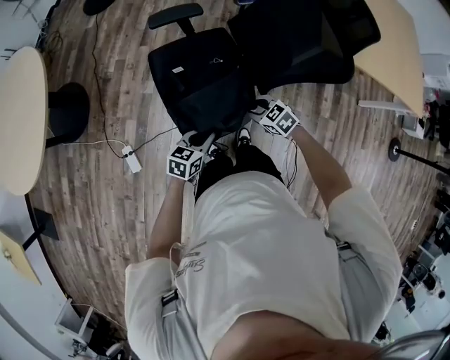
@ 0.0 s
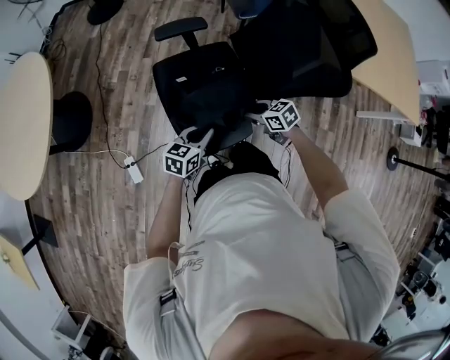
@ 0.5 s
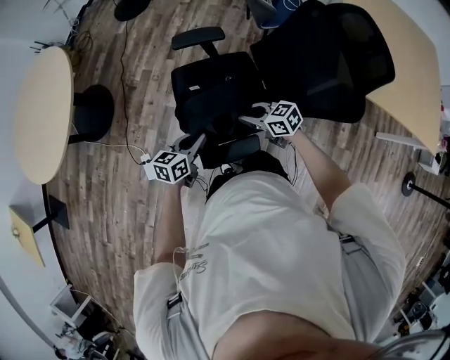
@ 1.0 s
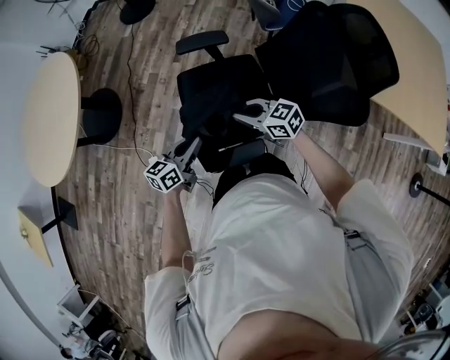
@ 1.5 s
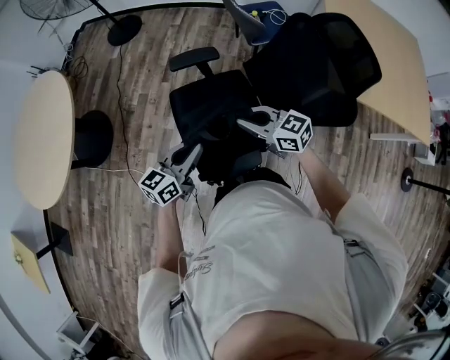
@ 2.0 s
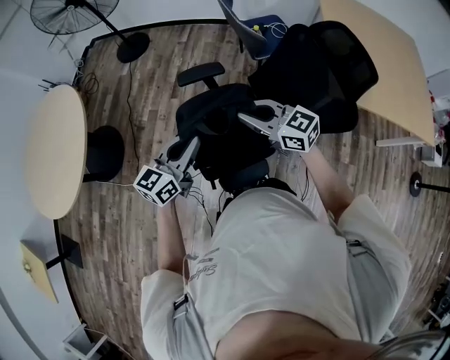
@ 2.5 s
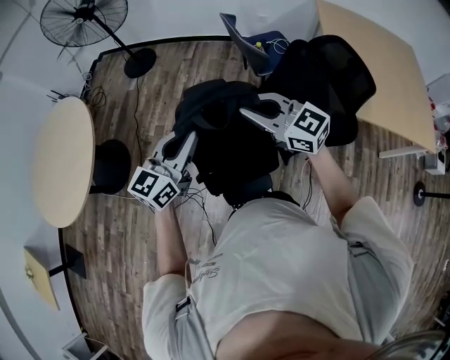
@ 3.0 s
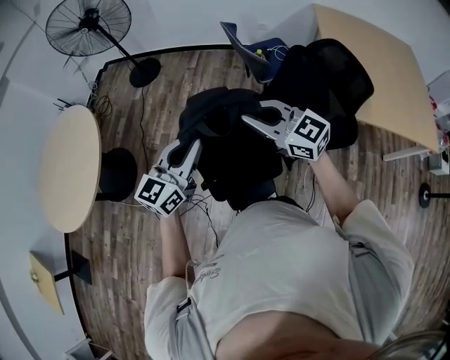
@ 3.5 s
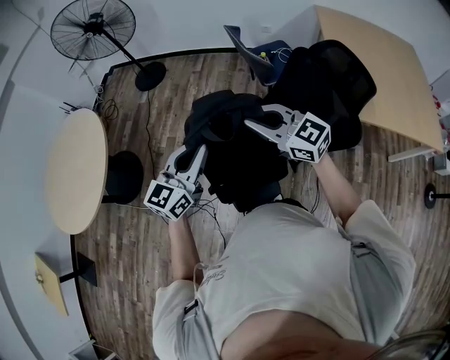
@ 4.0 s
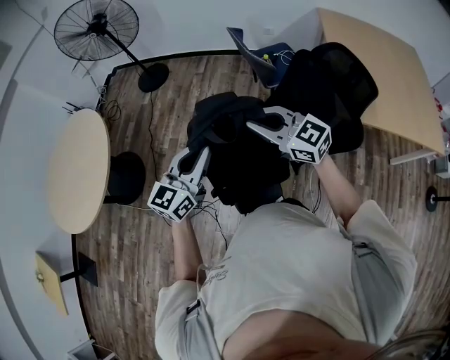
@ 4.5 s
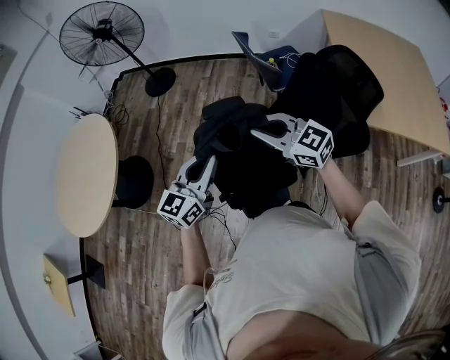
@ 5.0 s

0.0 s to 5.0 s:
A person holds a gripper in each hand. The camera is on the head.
0.0 to 2.5 s: The two grippers go roughly 30 cm upward and forward. The left gripper turns by about 30 degrees. Meanwhile the right gripper points its fingers roughly 40 degrees further upward, and closes.
2.5 to 5.0 s: Both grippers move upward, approximately 5 cm.

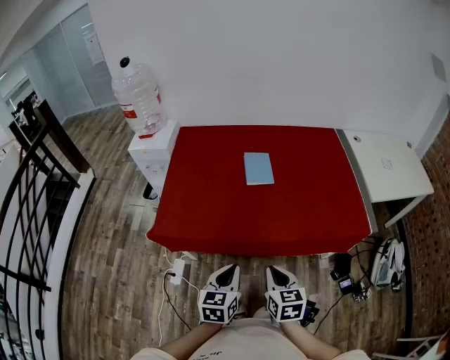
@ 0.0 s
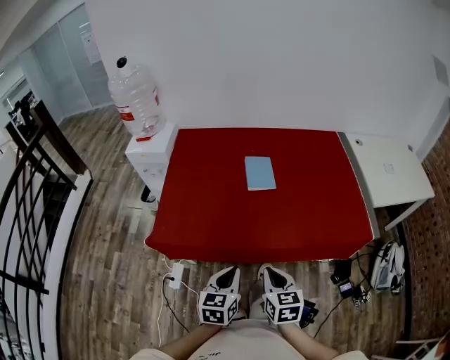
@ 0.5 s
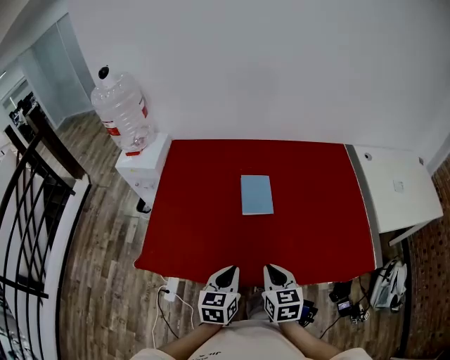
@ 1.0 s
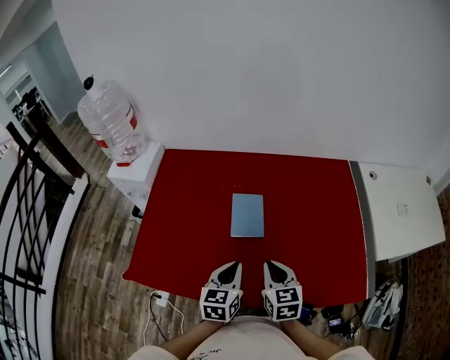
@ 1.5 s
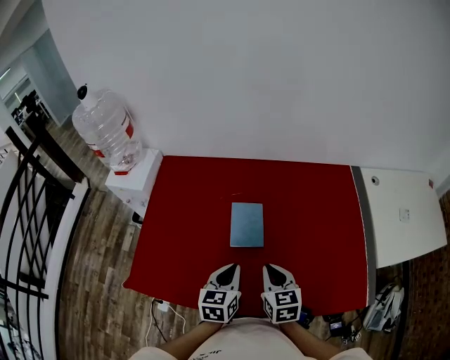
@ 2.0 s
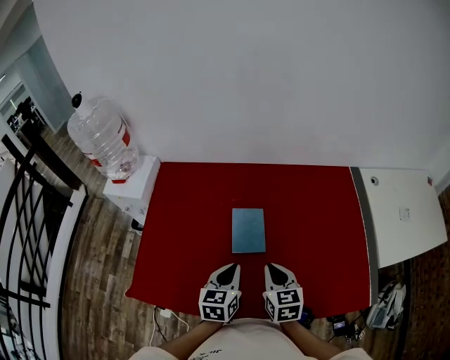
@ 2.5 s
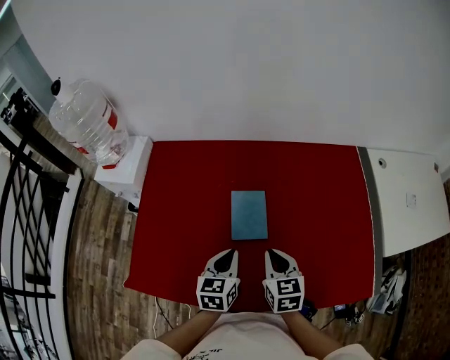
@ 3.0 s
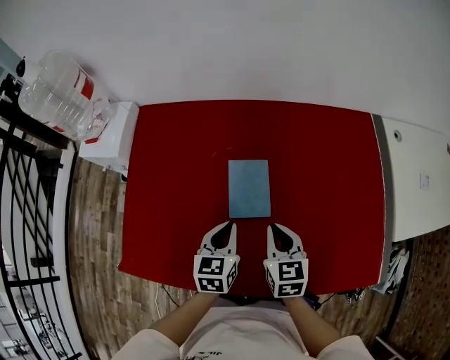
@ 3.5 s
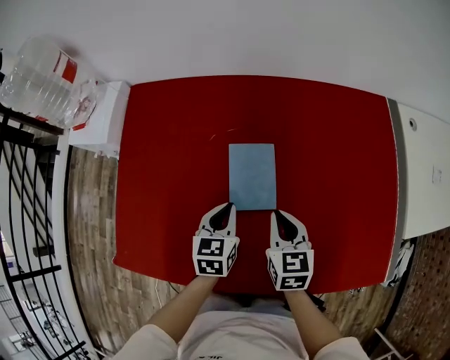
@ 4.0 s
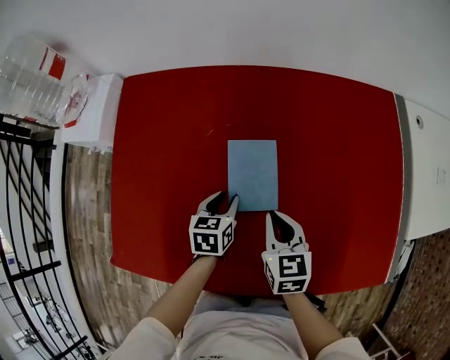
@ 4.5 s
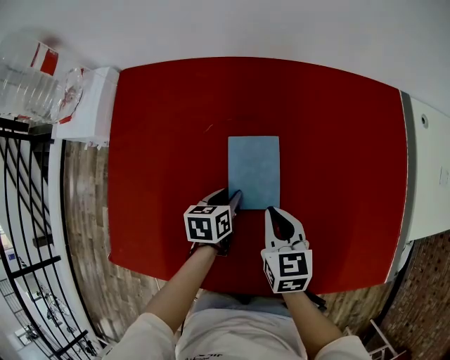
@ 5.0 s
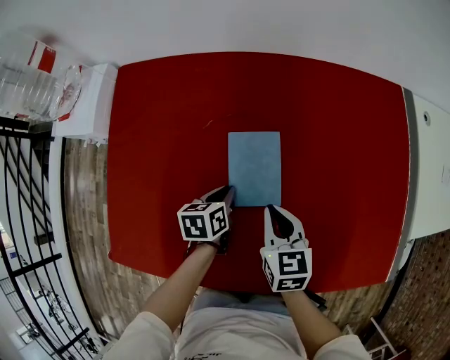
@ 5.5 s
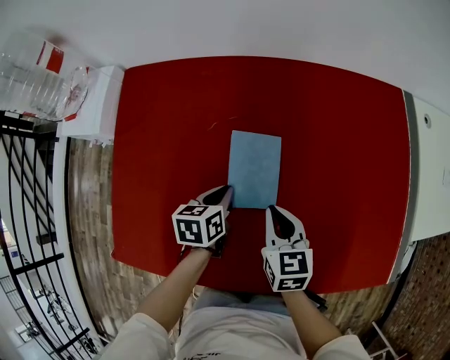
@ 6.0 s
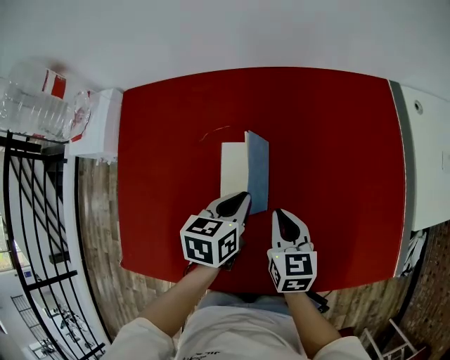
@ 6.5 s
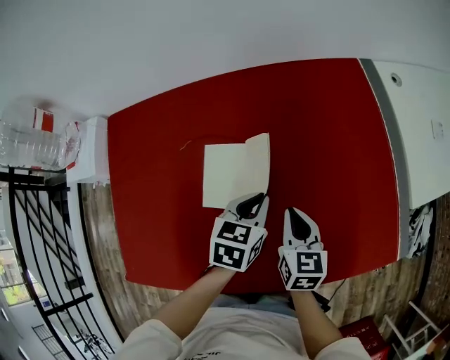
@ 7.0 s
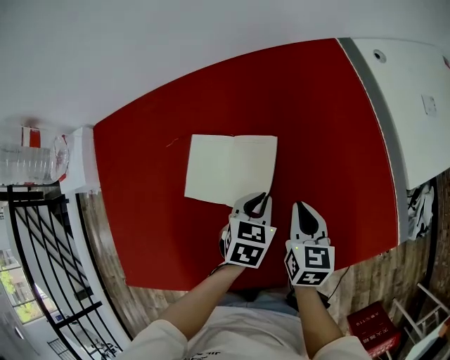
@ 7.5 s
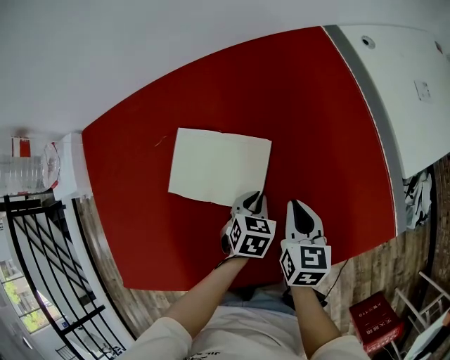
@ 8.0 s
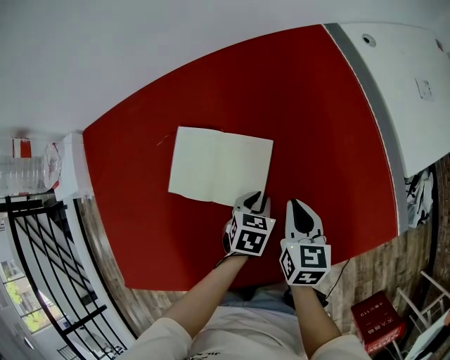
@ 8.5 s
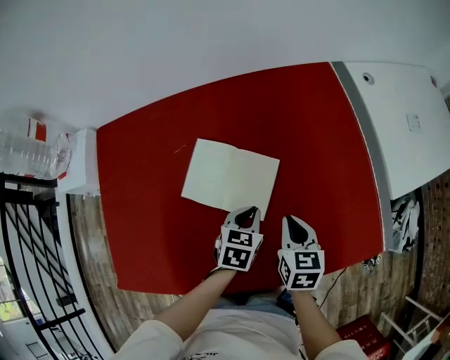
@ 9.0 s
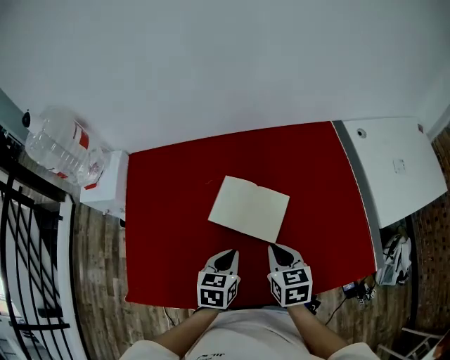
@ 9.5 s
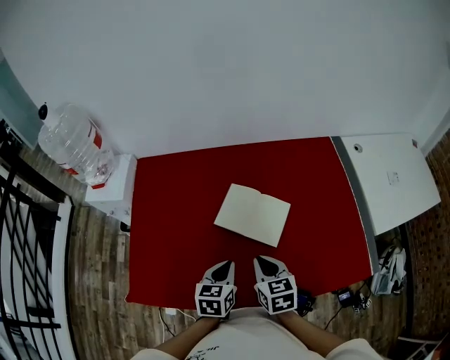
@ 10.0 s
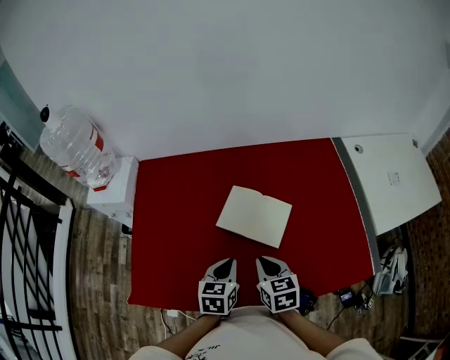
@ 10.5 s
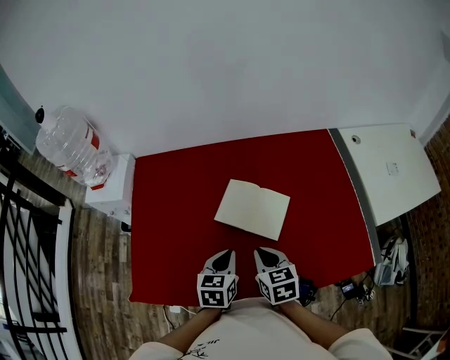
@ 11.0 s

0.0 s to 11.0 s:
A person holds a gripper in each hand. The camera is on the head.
0.0 to 2.0 s: Both grippers travel together forward, approximately 35 cm.
2.0 to 3.5 s: Both grippers move forward and downward, some 10 cm.
3.5 to 5.5 s: The right gripper is displaced downward by roughly 10 cm. Meanwhile the left gripper heads downward and forward, covering roughly 15 cm, rotates approximately 30 degrees, and opens and closes again.
5.5 to 7.5 s: Both grippers move to the right, roughly 25 cm. The right gripper rotates about 30 degrees. Meanwhile the left gripper rotates around the line of its fingers by about 40 degrees, clockwise from behind.
7.5 to 9.0 s: The left gripper moves roughly 10 cm downward and comes back.
9.0 to 11.0 s: The right gripper travels to the left and upward by some 20 cm, and turns by approximately 20 degrees. The left gripper travels to the left, upward and backward by some 25 cm, and swivels approximately 20 degrees.

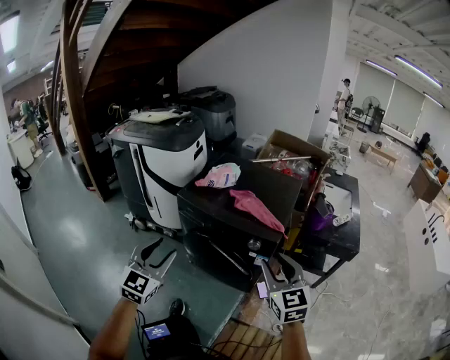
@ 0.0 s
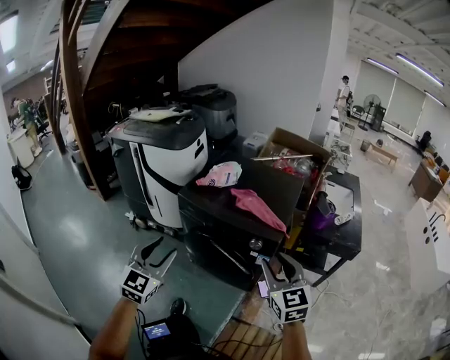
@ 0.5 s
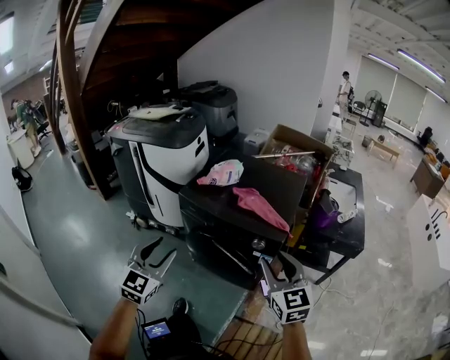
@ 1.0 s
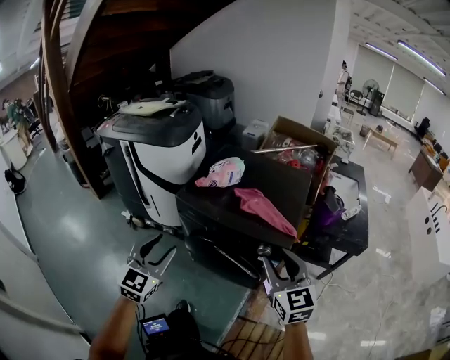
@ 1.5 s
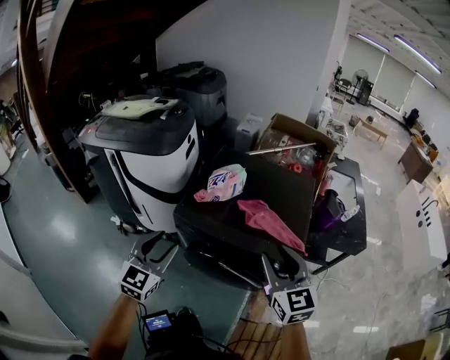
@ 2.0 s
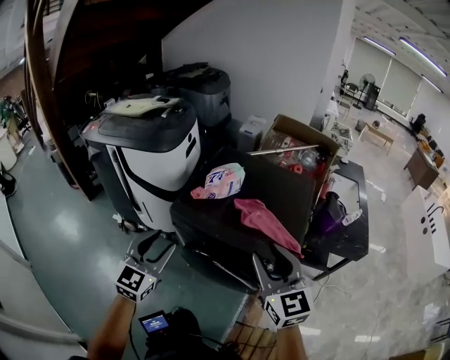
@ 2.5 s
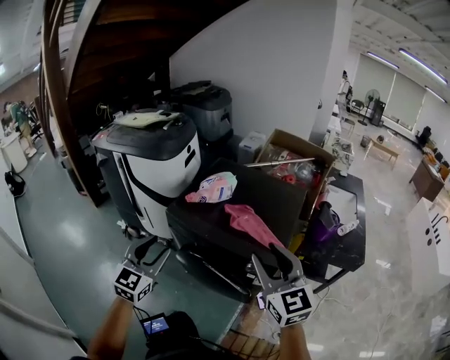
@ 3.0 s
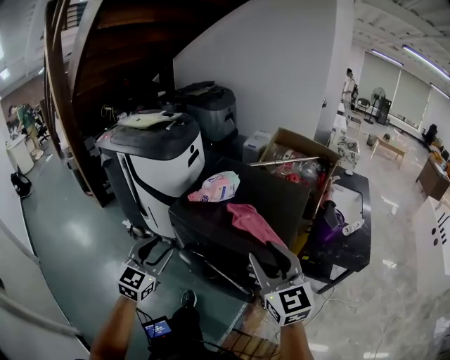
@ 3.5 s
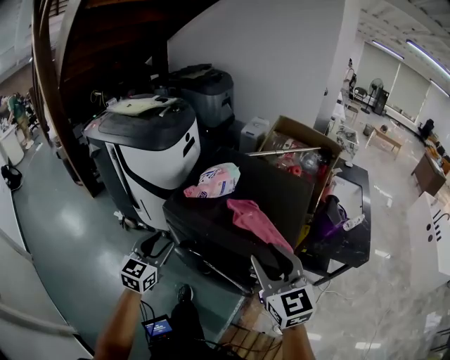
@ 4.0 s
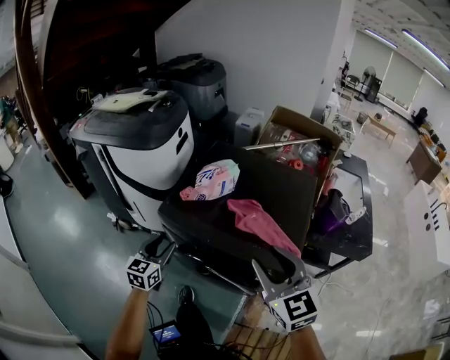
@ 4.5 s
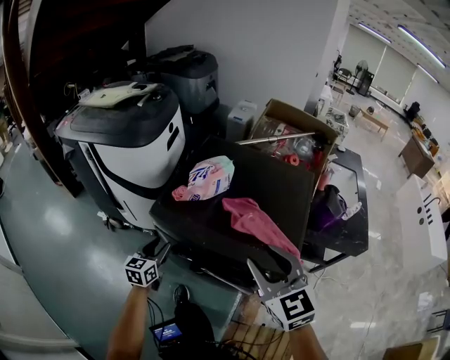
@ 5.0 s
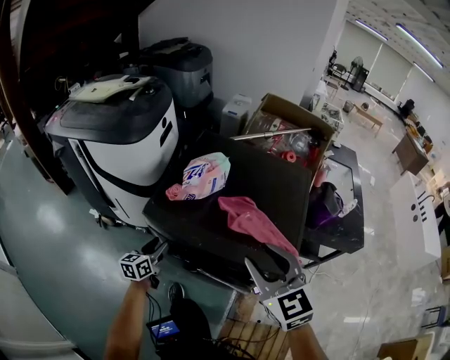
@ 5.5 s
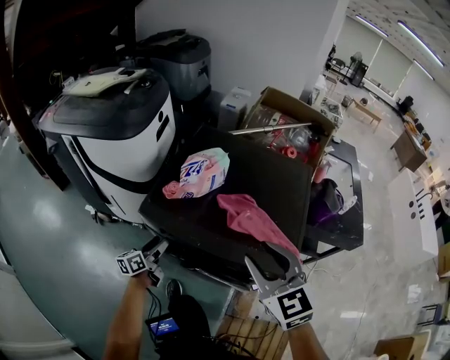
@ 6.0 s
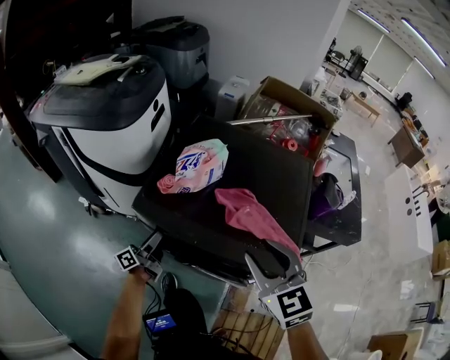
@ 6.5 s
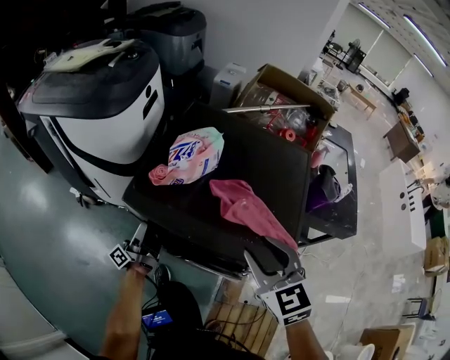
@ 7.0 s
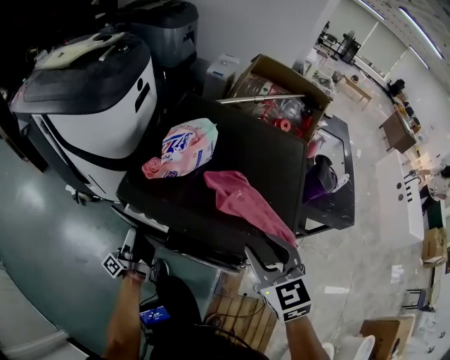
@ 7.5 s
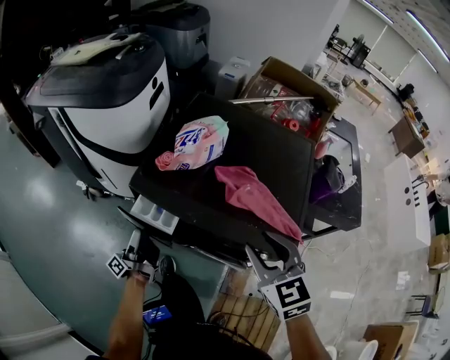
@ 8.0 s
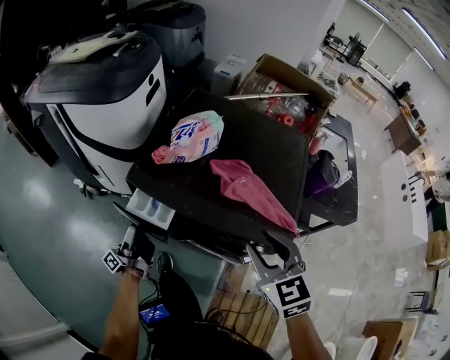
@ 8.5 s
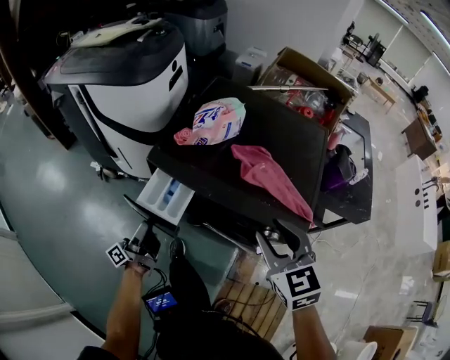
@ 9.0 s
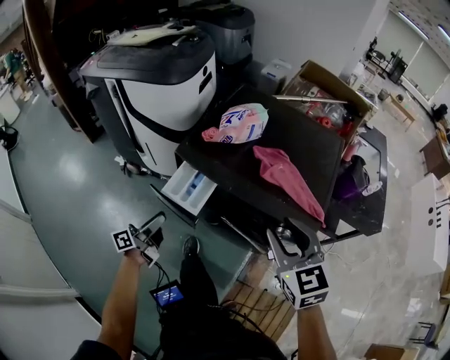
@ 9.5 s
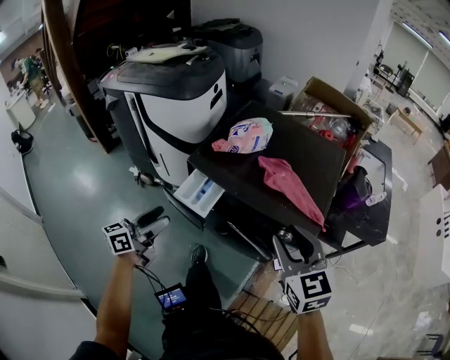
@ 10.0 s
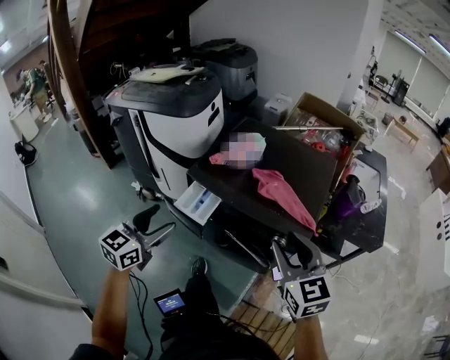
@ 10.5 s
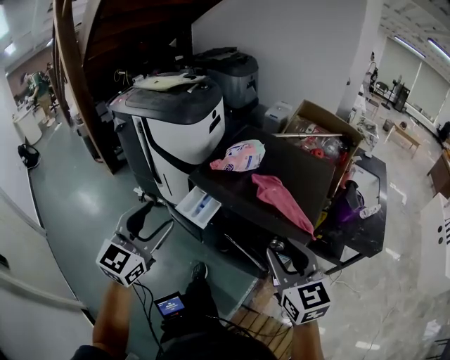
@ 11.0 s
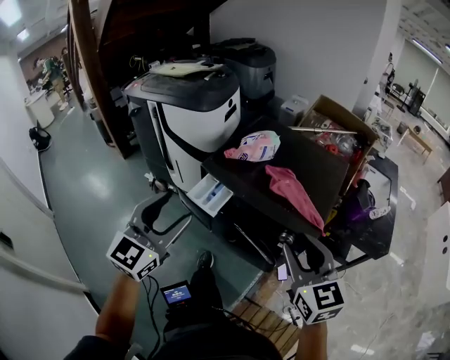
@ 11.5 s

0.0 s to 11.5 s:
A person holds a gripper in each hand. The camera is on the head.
0.0 to 2.0 s: The left gripper goes approximately 25 cm forward, while the right gripper is displaced forward and to the left by roughly 20 cm.
2.0 to 4.0 s: The left gripper moves downward, some 5 cm.
4.0 to 6.0 s: The right gripper is displaced forward and downward by about 10 cm. The left gripper heads downward and forward, covering about 30 cm, and rotates around the line of its fingers by roughly 50 degrees, counterclockwise from behind.
6.0 to 7.5 s: The right gripper goes approximately 5 cm downward; the left gripper tilts its fingers approximately 40 degrees upward.
7.5 to 9.5 s: The right gripper shifts approximately 10 cm backward; the left gripper travels backward by about 15 cm, and changes its angle by roughly 30 degrees.
9.5 to 11.5 s: The left gripper travels upward by some 30 cm, and rolls clockwise, seen from behind, by roughly 80 degrees; the right gripper moves backward and upward, about 15 cm.
